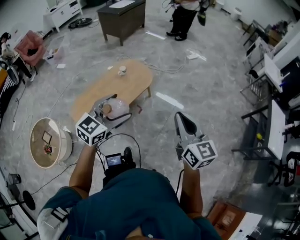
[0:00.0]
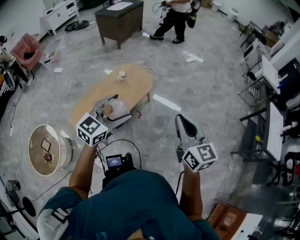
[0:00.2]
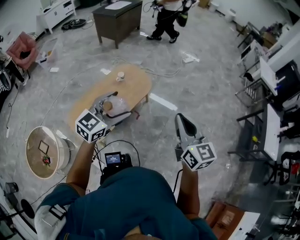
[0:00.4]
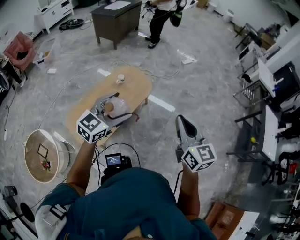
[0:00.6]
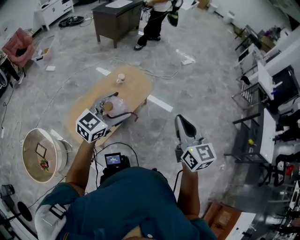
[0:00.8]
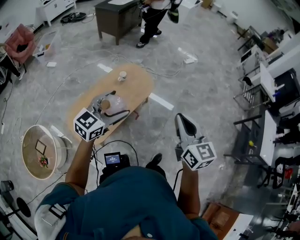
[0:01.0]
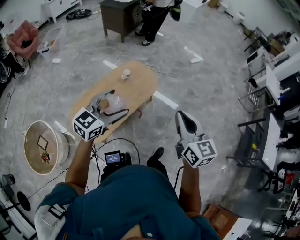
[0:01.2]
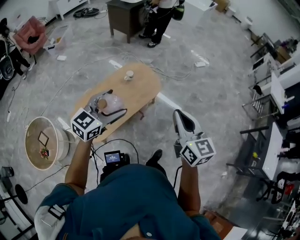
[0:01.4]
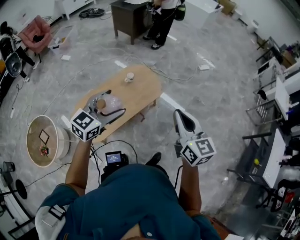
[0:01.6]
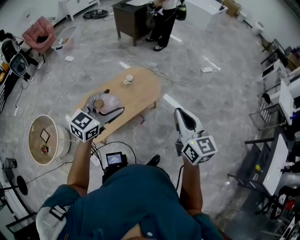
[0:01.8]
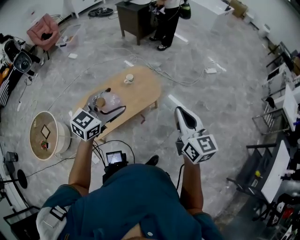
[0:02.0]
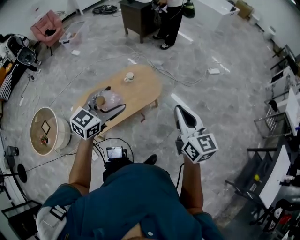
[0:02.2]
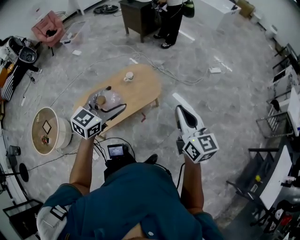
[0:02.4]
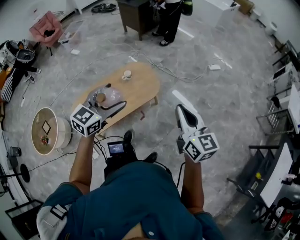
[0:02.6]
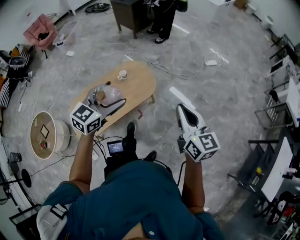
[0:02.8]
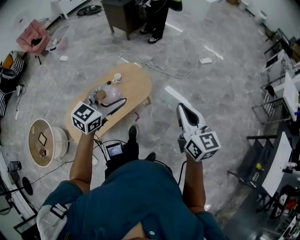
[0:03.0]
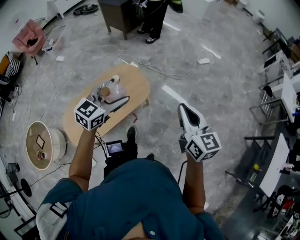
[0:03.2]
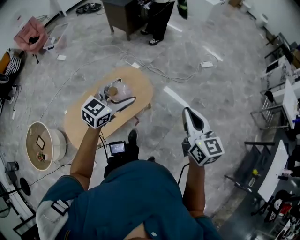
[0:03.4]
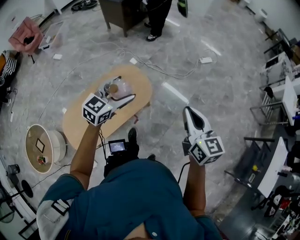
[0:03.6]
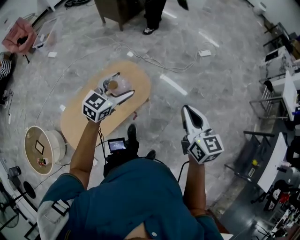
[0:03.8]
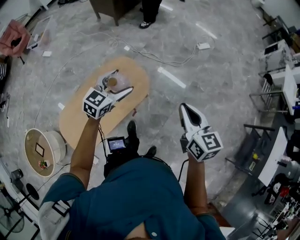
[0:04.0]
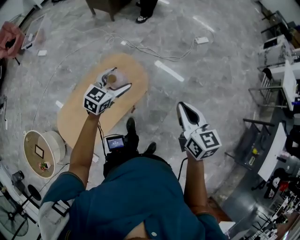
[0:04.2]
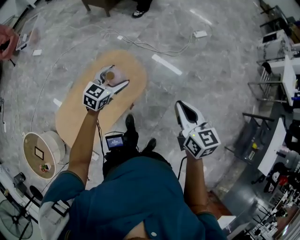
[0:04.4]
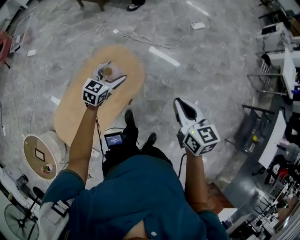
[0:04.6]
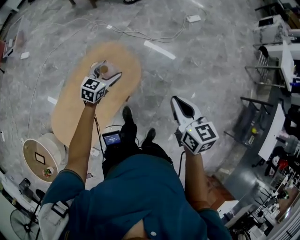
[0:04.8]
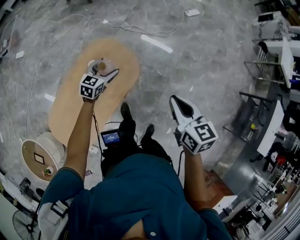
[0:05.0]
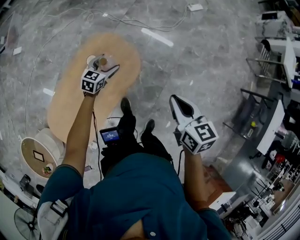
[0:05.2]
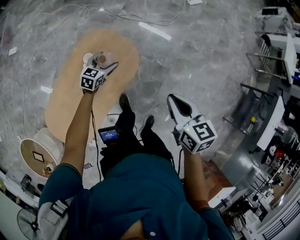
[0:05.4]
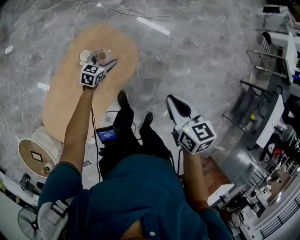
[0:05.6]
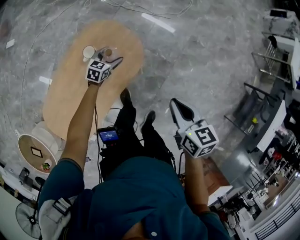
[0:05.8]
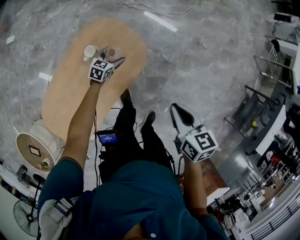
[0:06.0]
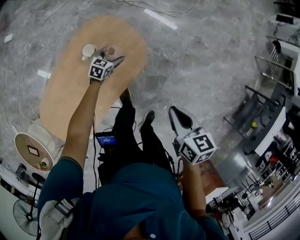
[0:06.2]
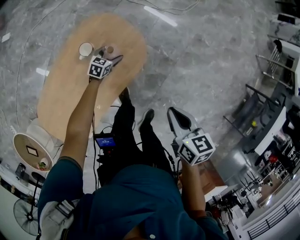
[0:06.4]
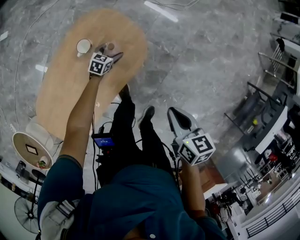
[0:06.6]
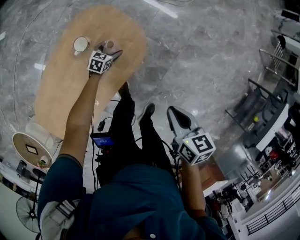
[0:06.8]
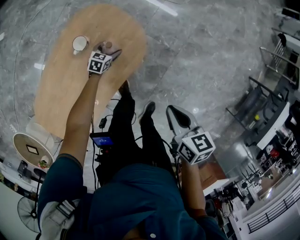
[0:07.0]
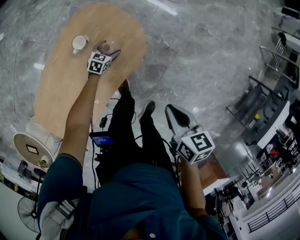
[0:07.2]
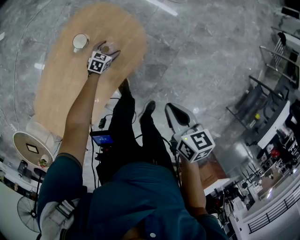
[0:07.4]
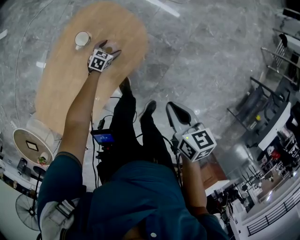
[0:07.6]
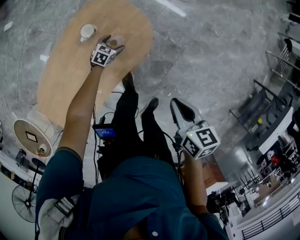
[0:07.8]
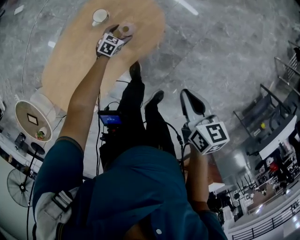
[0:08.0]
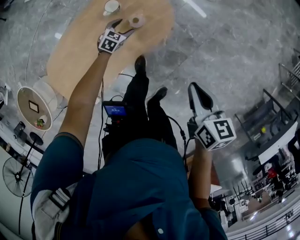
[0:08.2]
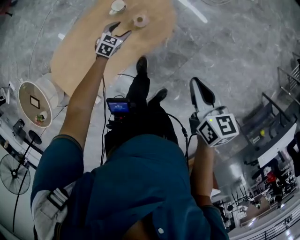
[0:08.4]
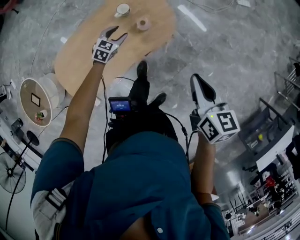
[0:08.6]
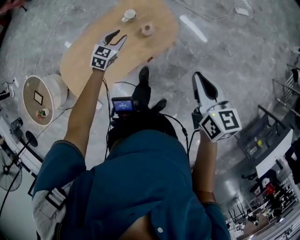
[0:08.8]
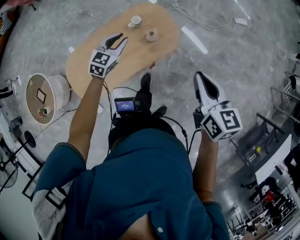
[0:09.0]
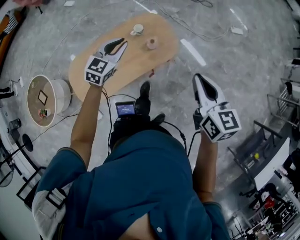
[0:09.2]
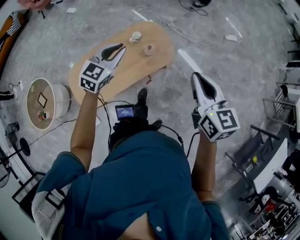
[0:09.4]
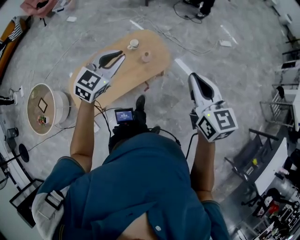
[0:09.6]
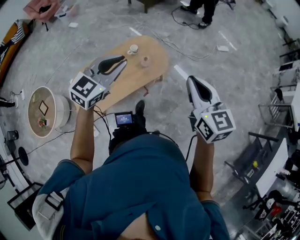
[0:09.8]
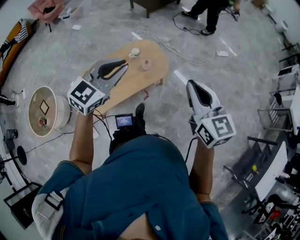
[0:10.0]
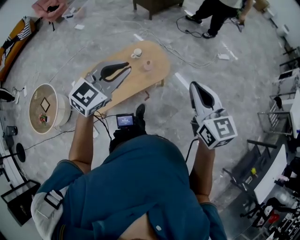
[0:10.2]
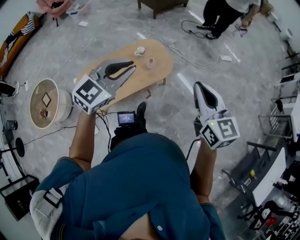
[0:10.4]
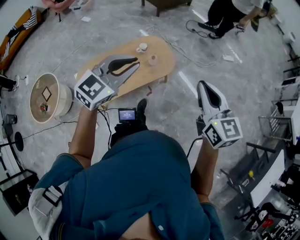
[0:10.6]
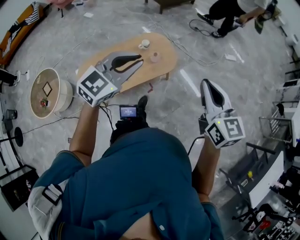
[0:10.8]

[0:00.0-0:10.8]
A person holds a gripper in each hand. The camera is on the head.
0:00.0 to 0:01.6: The two grippers go about 20 cm forward and to the left.
0:01.6 to 0:03.0: Both grippers move to the right and forward, roughly 20 cm.
0:03.0 to 0:04.6: The left gripper is displaced forward and downward by approximately 35 cm. The right gripper moves forward, downward and to the left, some 20 cm, and swivels some 20 degrees.
0:04.6 to 0:06.2: The left gripper goes approximately 35 cm downward. The right gripper heads downward, covering about 15 cm, and swivels some 20 degrees.
0:06.2 to 0:07.8: The right gripper shifts by some 5 cm. The left gripper moves downward, approximately 10 cm.
0:07.8 to 0:09.2: The left gripper moves upward, roughly 50 cm, turns by approximately 40 degrees, and closes up. The right gripper travels upward by roughly 25 cm, and turns by approximately 40 degrees.
0:09.2 to 0:10.8: The right gripper is displaced upward, backward and to the right by roughly 20 cm. The left gripper heads upward, backward and to the right, covering some 30 cm.

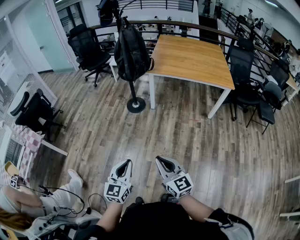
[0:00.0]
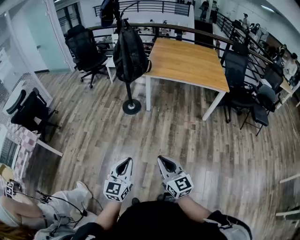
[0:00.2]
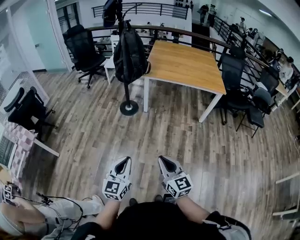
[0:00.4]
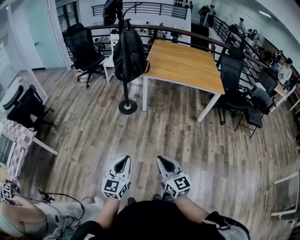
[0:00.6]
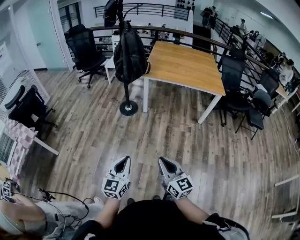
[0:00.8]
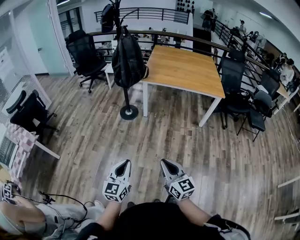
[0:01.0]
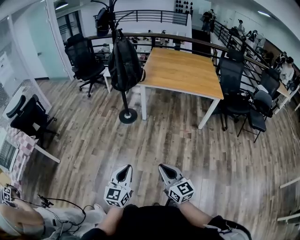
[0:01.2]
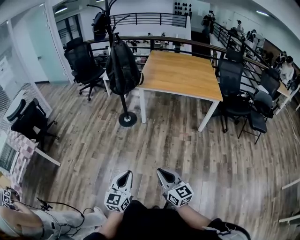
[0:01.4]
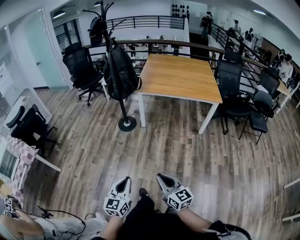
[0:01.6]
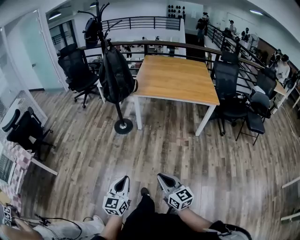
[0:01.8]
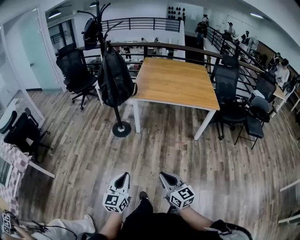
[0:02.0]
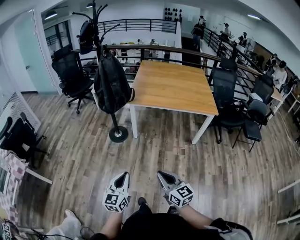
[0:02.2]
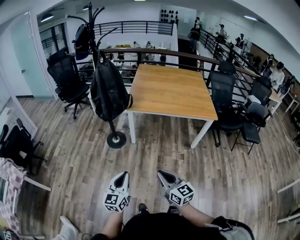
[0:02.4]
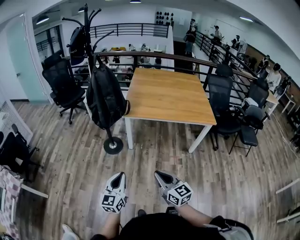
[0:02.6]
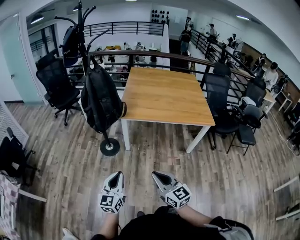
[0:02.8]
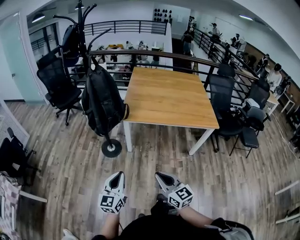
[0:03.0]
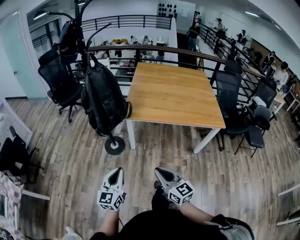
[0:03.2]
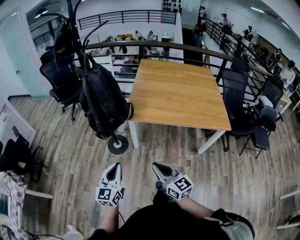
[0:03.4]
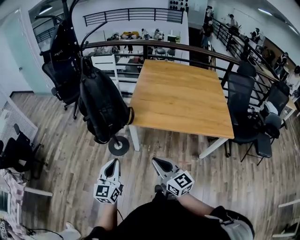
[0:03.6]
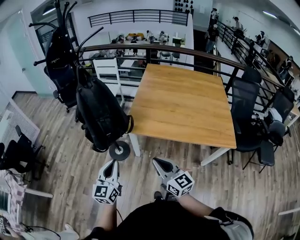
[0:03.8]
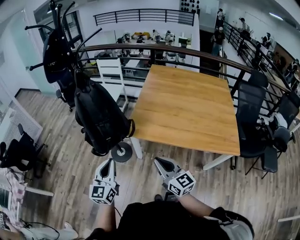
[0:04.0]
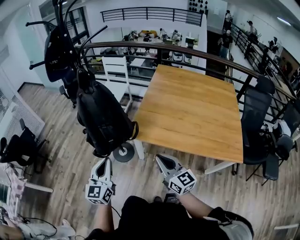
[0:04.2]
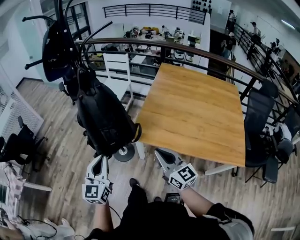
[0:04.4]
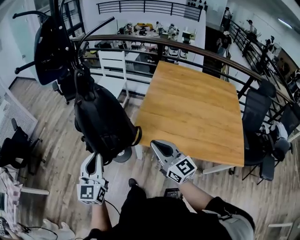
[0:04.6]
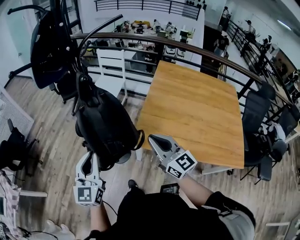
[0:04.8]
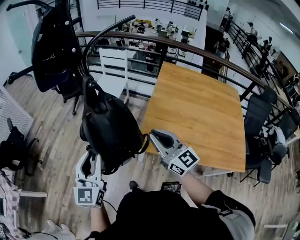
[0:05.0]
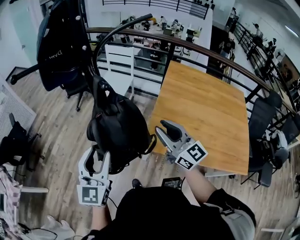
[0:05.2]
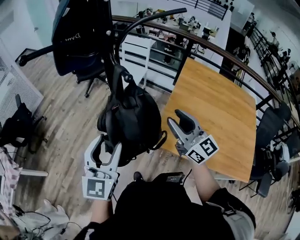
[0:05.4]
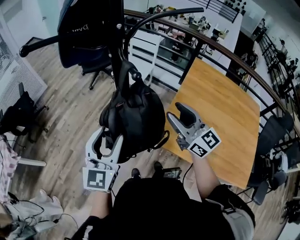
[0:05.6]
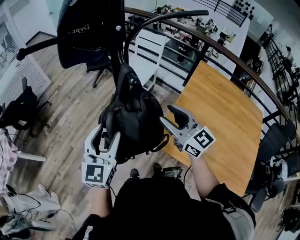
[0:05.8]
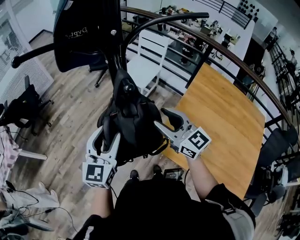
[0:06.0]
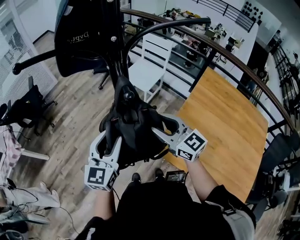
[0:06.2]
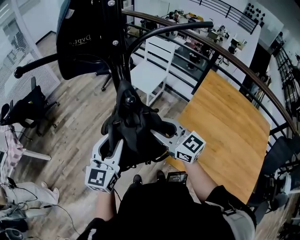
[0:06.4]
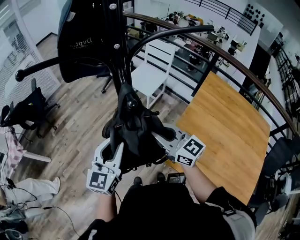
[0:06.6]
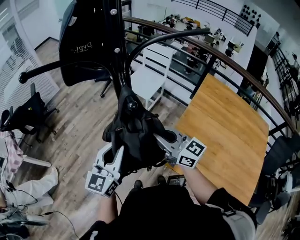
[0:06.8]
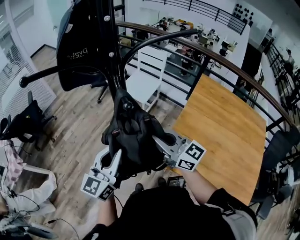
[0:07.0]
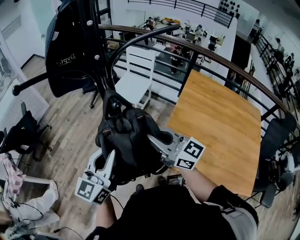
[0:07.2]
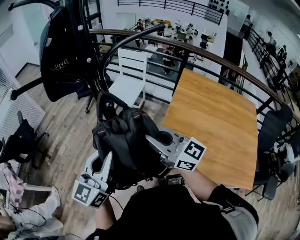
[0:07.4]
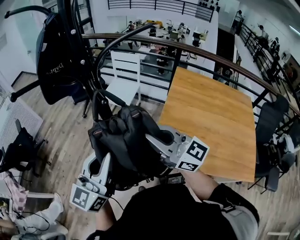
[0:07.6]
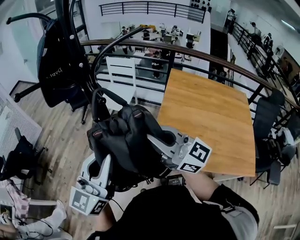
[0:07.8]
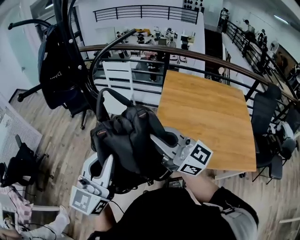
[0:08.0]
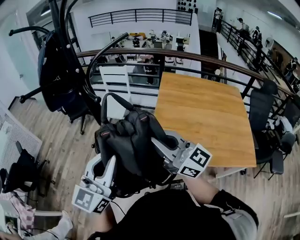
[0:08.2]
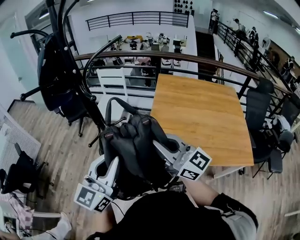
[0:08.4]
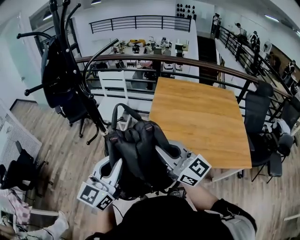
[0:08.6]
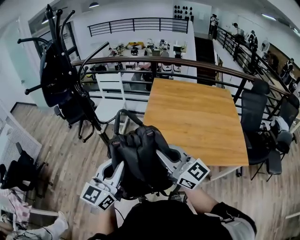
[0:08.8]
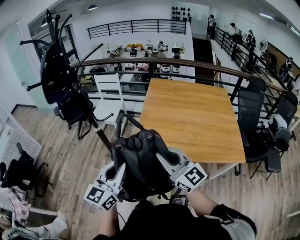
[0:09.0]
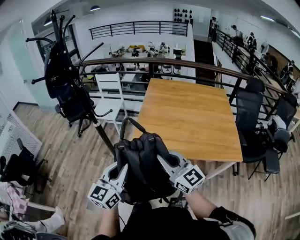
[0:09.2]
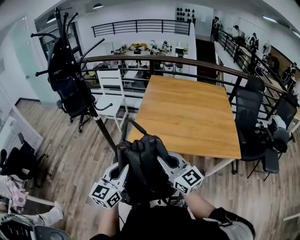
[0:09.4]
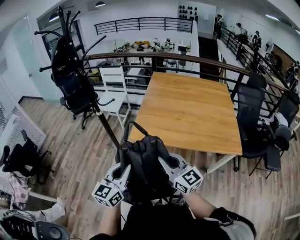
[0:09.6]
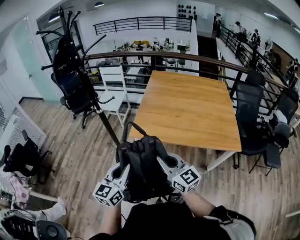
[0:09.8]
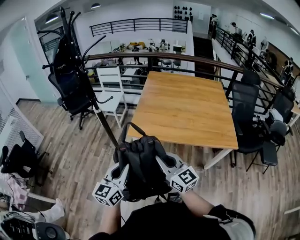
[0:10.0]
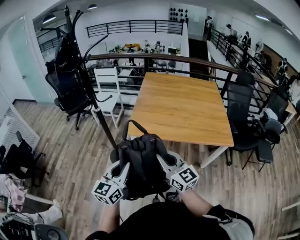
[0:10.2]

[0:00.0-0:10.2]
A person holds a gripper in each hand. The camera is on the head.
0:00.0 to 0:01.4: The right gripper heads to the right, covering roughly 5 cm. Meanwhile the left gripper changes place by roughly 5 cm.
0:01.4 to 0:03.0: Both grippers move forward, approximately 30 cm.
0:03.0 to 0:04.4: Both grippers travel together forward, some 35 cm. The left gripper swivels about 20 degrees.
0:04.4 to 0:05.8: Both grippers move forward, approximately 20 cm. The left gripper opens up; the right gripper rotates roughly 20 degrees, and opens its fingers.
0:05.8 to 0:07.2: The right gripper closes its fingers. The left gripper moves roughly 5 cm, changes its angle by approximately 20 degrees, and closes up.
0:07.2 to 0:08.8: Both grippers move backward and to the right, approximately 20 cm. The left gripper swivels some 20 degrees. The right gripper turns by some 30 degrees.
0:08.8 to 0:10.2: Both grippers move backward and downward, some 20 cm.

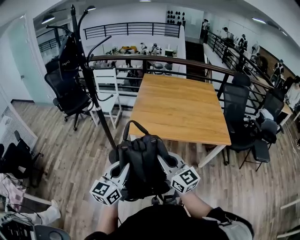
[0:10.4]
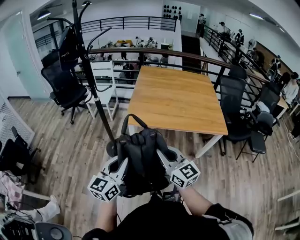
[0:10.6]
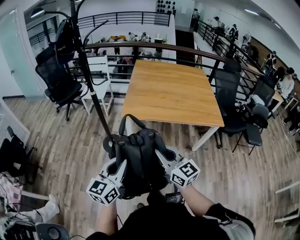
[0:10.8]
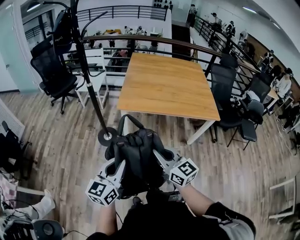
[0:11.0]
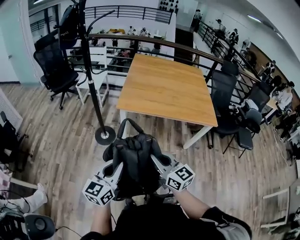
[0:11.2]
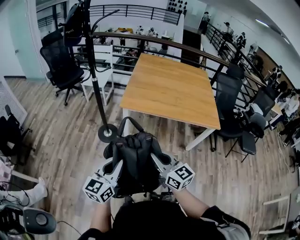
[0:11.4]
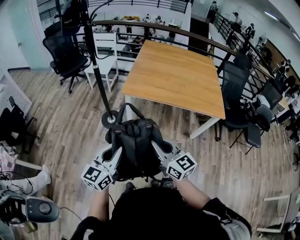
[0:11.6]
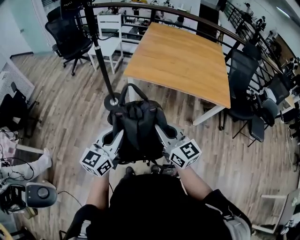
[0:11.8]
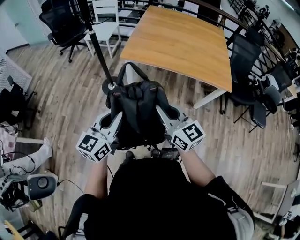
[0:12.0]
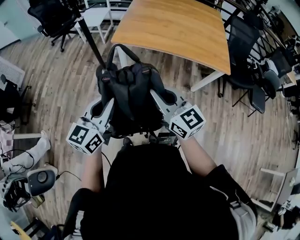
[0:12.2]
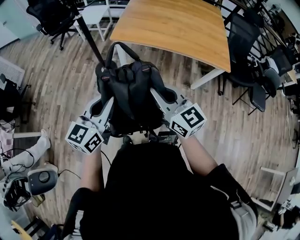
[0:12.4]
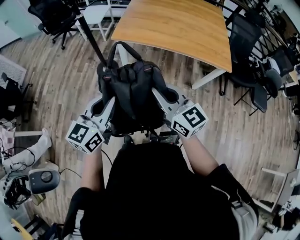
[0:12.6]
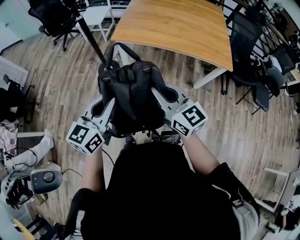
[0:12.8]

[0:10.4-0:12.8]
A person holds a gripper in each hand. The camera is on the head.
0:10.4 to 0:11.6: The two grippers go about 10 cm backward.
0:11.6 to 0:12.8: The grippers make only small movements.
